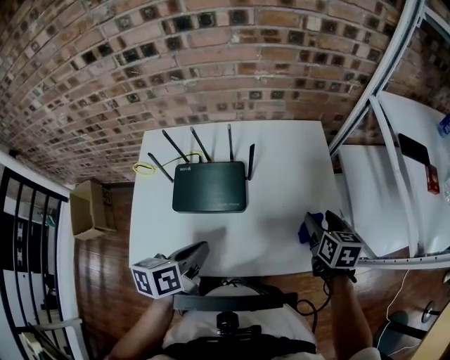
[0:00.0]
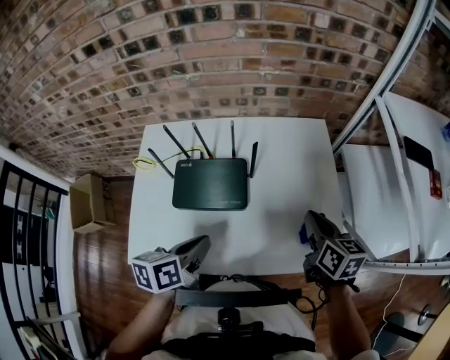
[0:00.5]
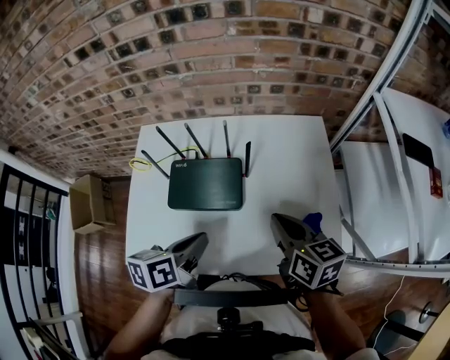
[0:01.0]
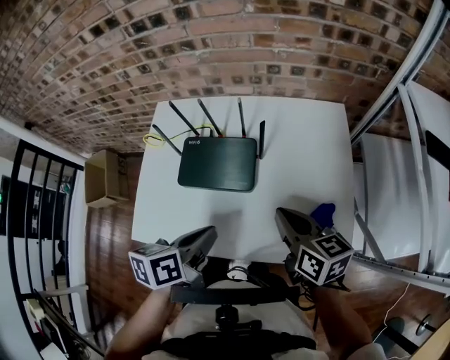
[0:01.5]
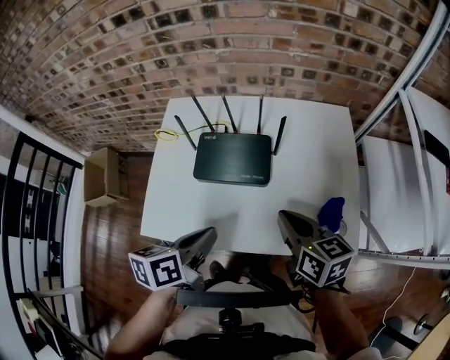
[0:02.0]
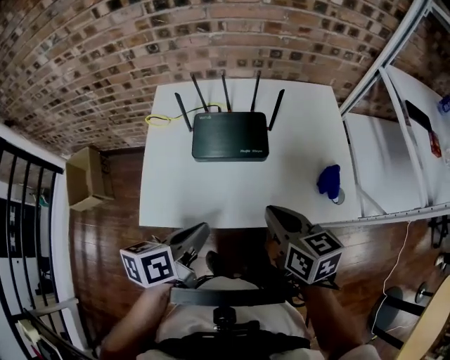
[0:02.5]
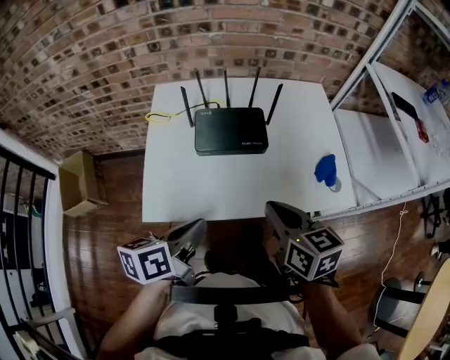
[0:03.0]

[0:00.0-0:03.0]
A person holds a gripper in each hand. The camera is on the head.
0:00.0 to 0:01.5: The right gripper moves to the left, about 15 cm, turns by some 30 degrees, and closes its fingers.
0:01.5 to 0:03.0: The left gripper heads to the left and backward, covering approximately 25 cm. Meanwhile the right gripper is displaced backward and to the left by approximately 25 cm.

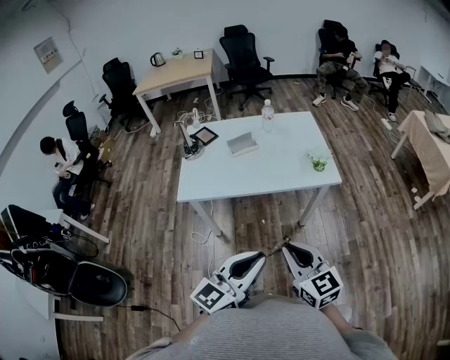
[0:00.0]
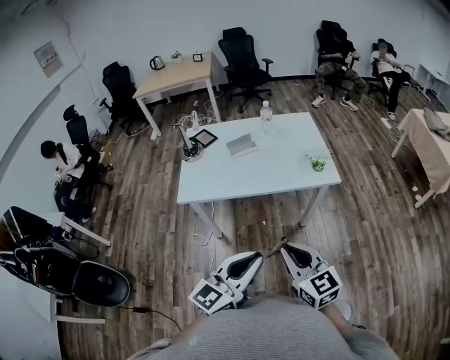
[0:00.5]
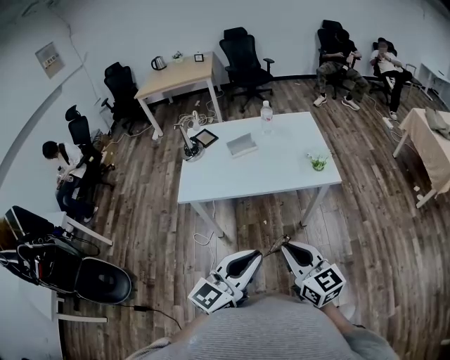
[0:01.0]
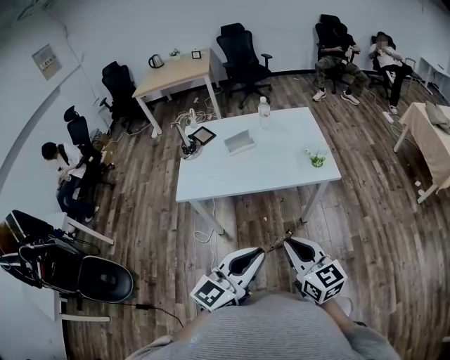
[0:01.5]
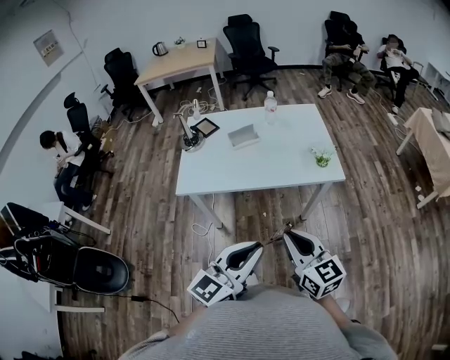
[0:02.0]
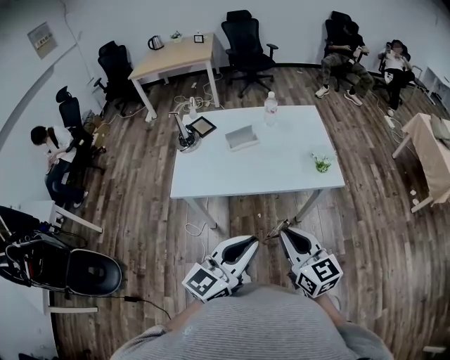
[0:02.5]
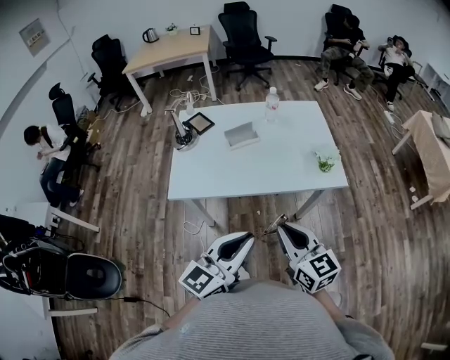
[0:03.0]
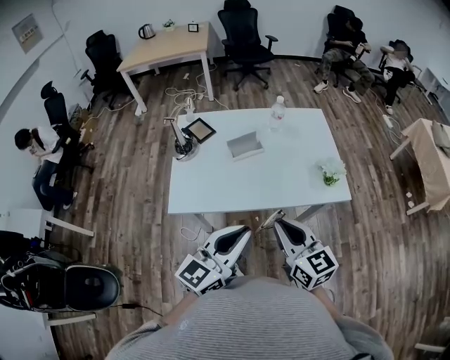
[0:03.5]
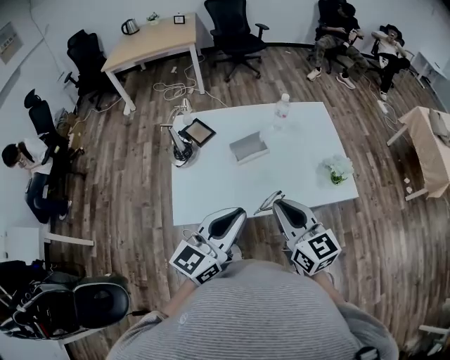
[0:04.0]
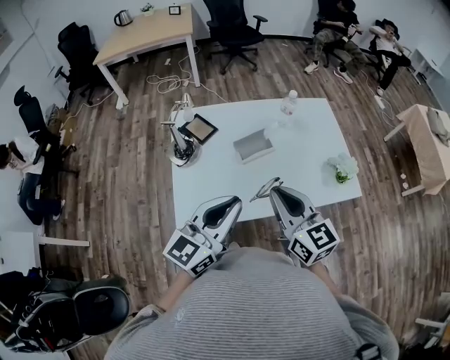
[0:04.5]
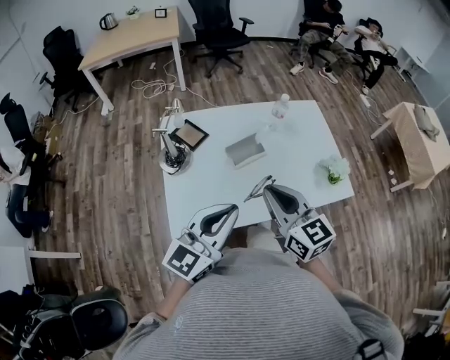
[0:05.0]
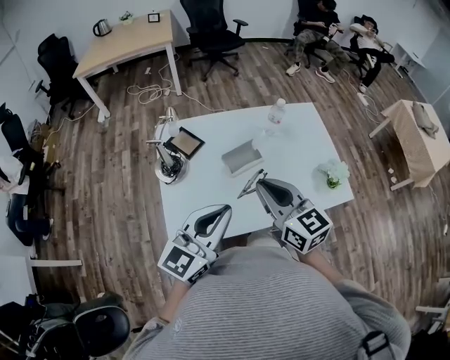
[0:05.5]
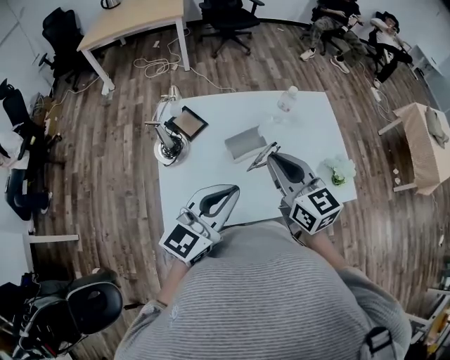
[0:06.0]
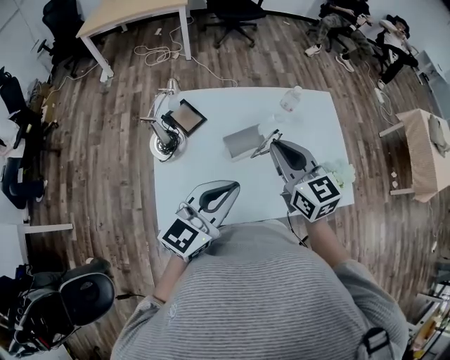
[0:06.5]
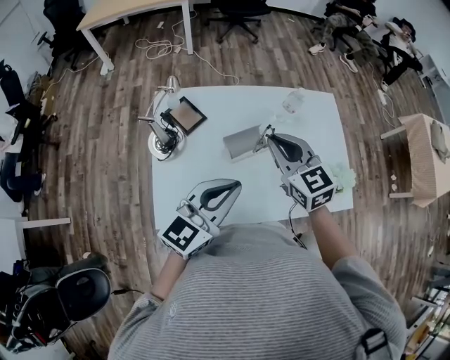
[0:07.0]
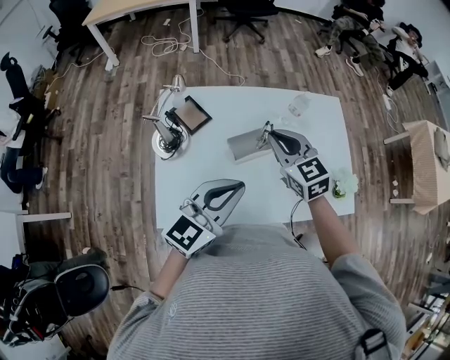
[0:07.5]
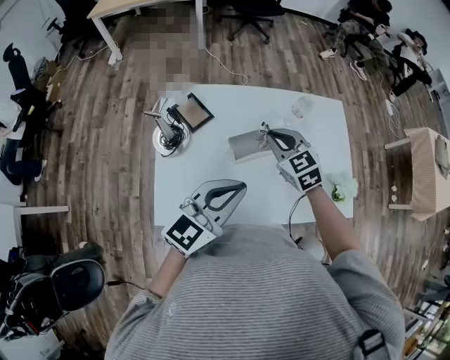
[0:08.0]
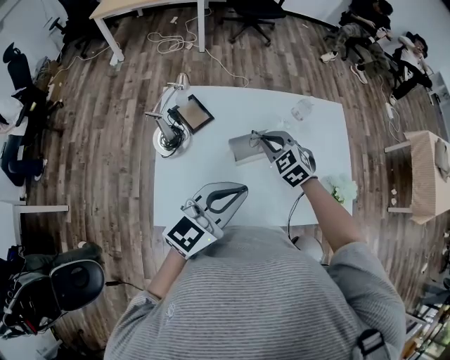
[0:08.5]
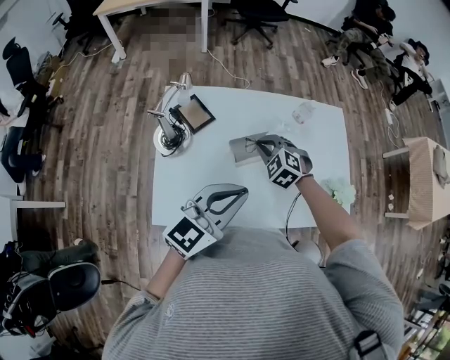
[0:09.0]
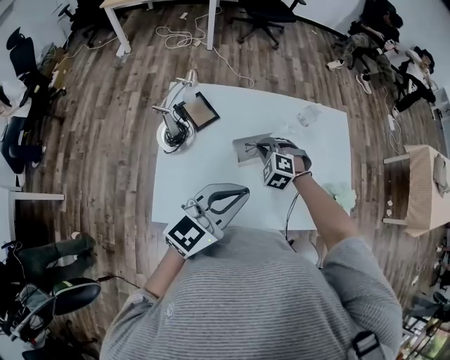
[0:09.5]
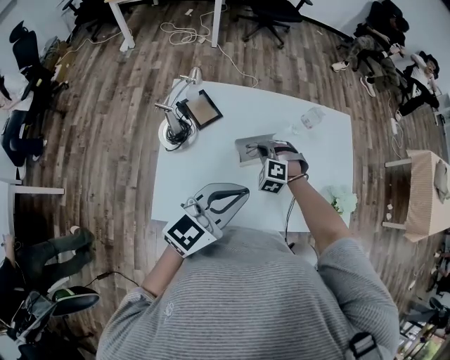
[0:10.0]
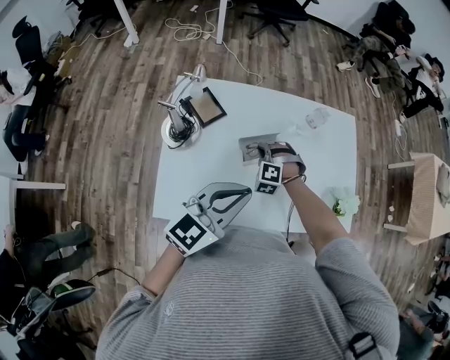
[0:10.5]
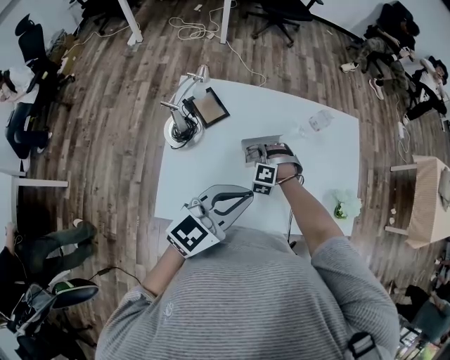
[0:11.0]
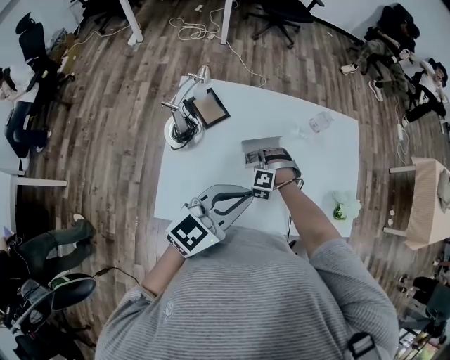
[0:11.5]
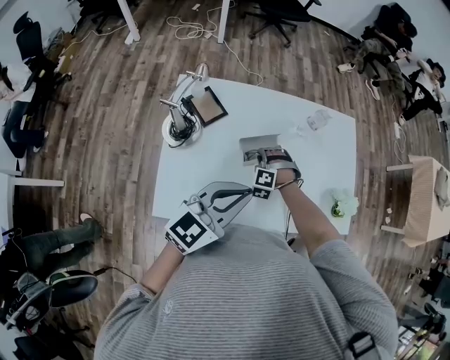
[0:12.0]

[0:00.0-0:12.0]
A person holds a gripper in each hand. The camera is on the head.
0:00.0 to 0:02.0: The grippers move only a little.
0:02.0 to 0:04.0: The grippers both shift forward and to the left by about 30 cm.
0:04.0 to 0:06.0: Both grippers move forward, roughly 15 cm.
0:06.0 to 0:08.0: The left gripper shifts by roughly 5 cm; the right gripper moves forward and downward, about 20 cm, and rotates about 30 degrees.
0:08.0 to 0:10.0: The right gripper is displaced downward by about 15 cm, and twists some 50 degrees counterclockwise, seen from behind.
0:10.0 to 0:12.0: The right gripper moves approximately 5 cm.

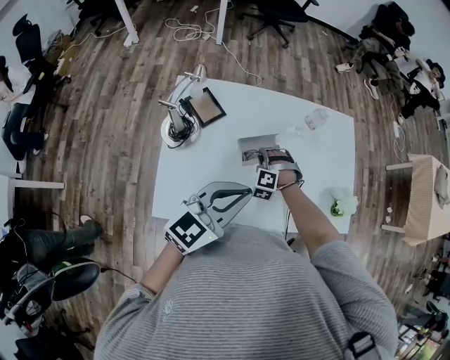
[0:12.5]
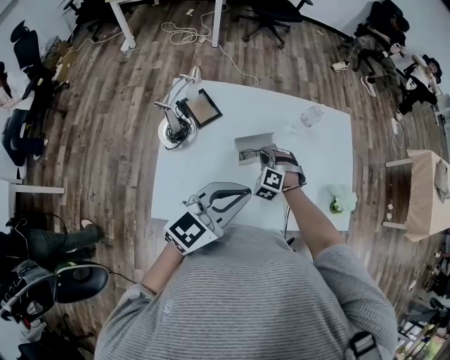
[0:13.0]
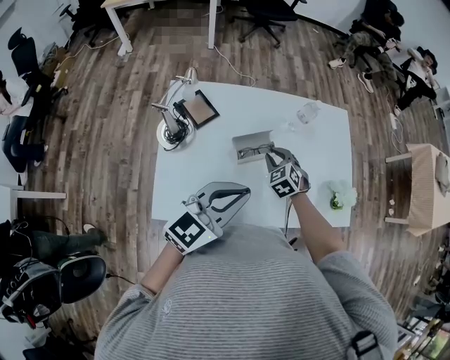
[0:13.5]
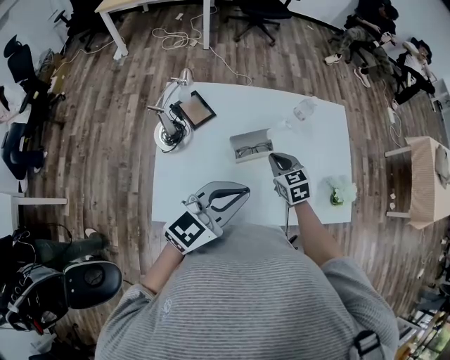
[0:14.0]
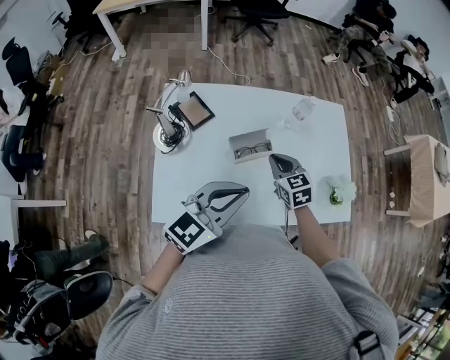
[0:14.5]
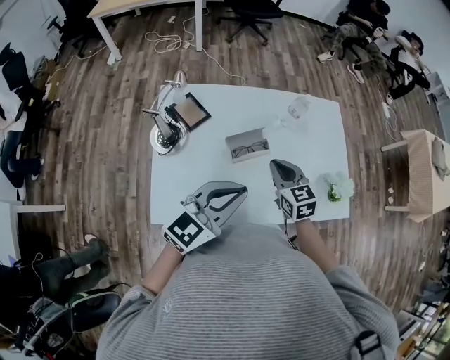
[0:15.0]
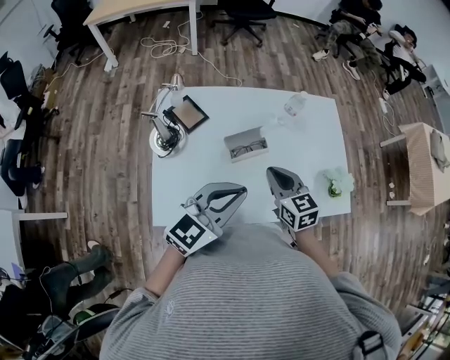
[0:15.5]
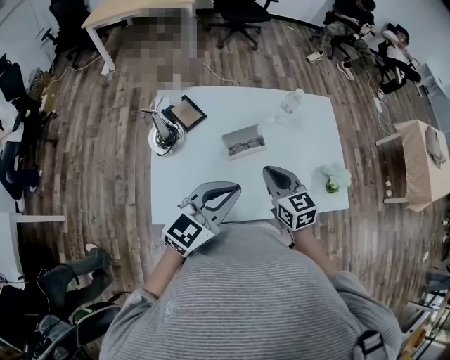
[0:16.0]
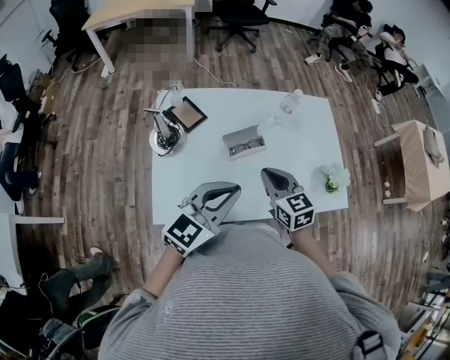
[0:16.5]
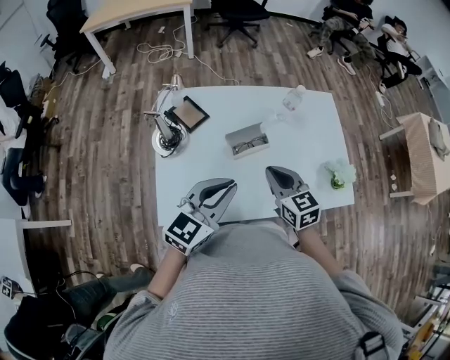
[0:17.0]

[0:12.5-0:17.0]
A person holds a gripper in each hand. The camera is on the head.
0:12.5 to 0:14.5: The right gripper moves upward and to the right, approximately 15 cm, and rotates around the line of its fingers by approximately 70 degrees, clockwise from behind.
0:14.5 to 0:17.0: The right gripper is displaced backward and upward by approximately 10 cm.

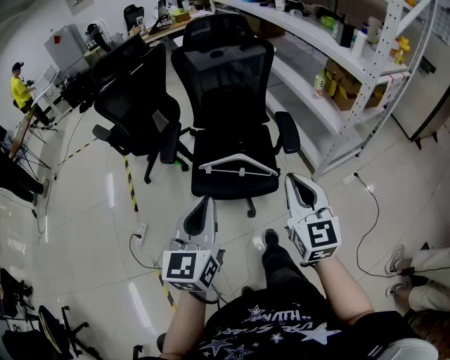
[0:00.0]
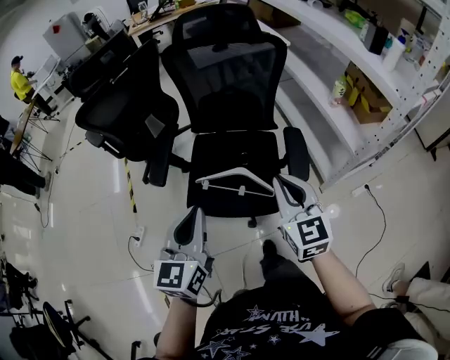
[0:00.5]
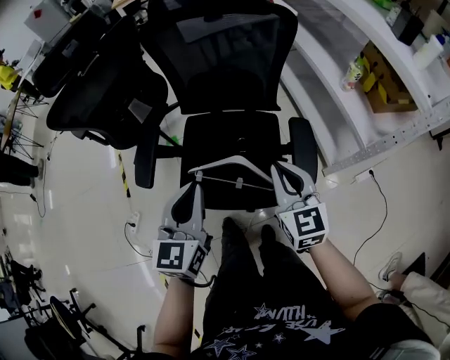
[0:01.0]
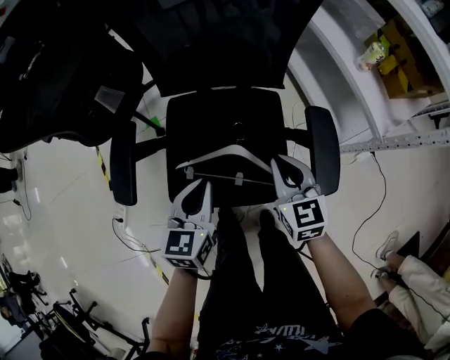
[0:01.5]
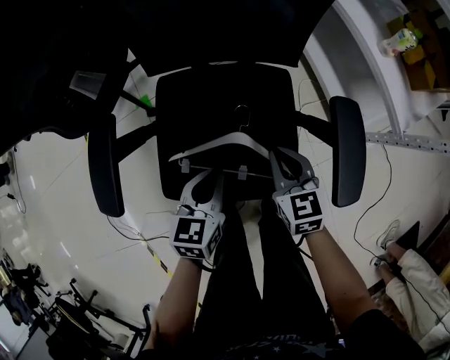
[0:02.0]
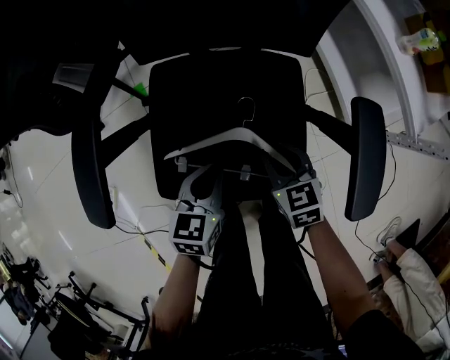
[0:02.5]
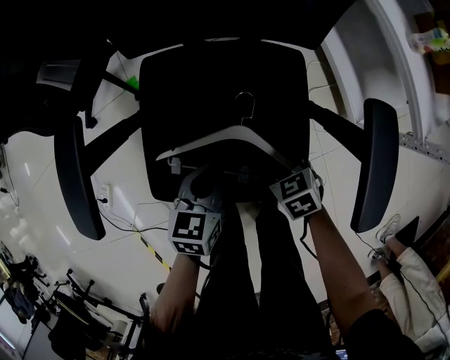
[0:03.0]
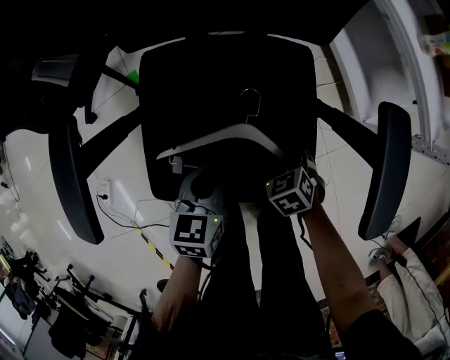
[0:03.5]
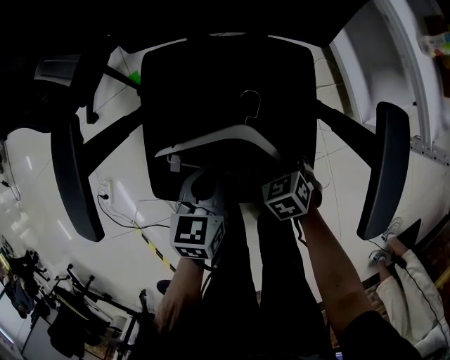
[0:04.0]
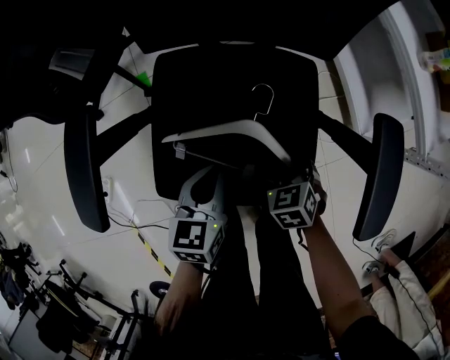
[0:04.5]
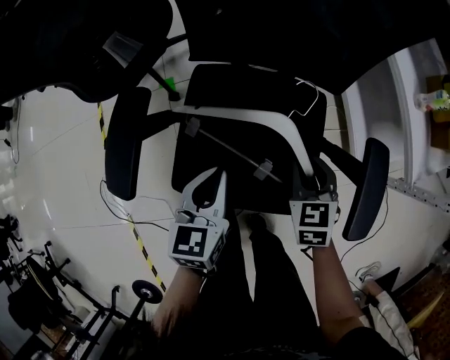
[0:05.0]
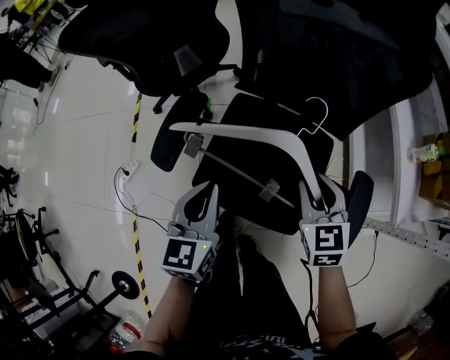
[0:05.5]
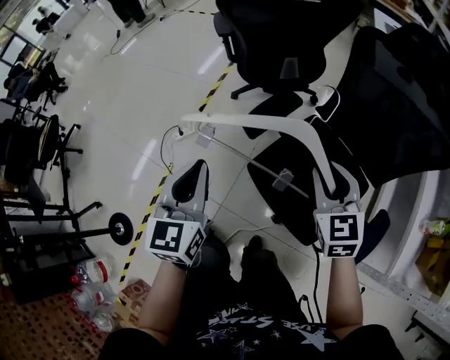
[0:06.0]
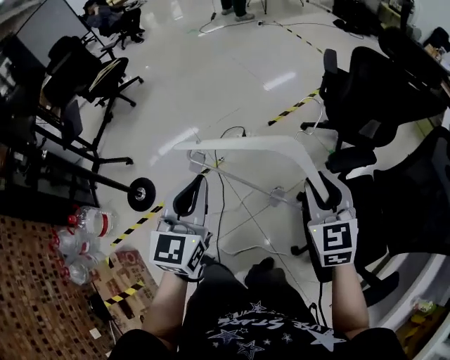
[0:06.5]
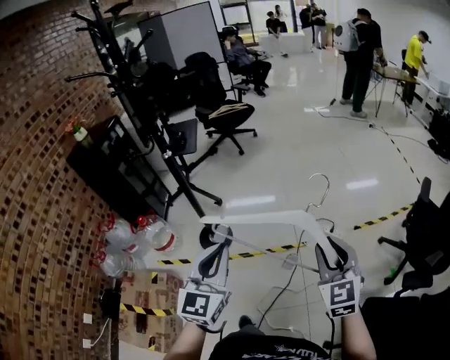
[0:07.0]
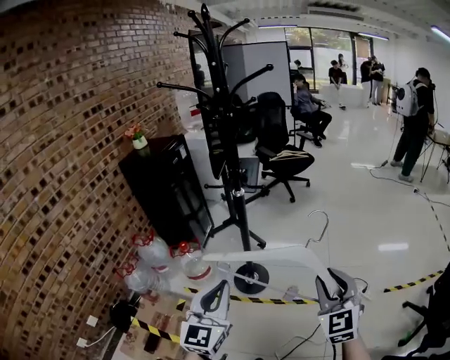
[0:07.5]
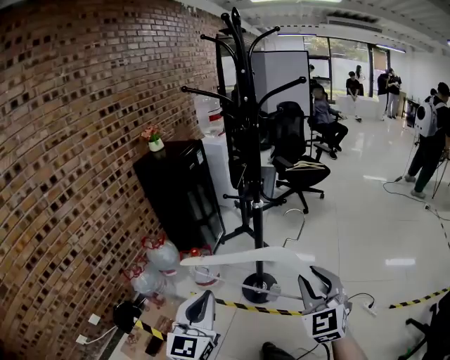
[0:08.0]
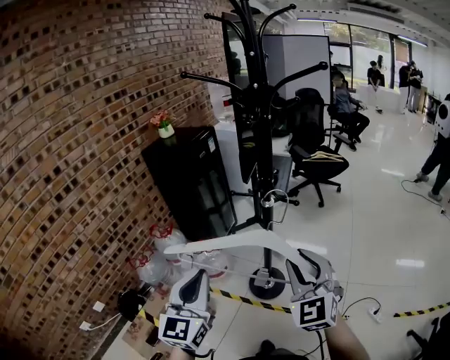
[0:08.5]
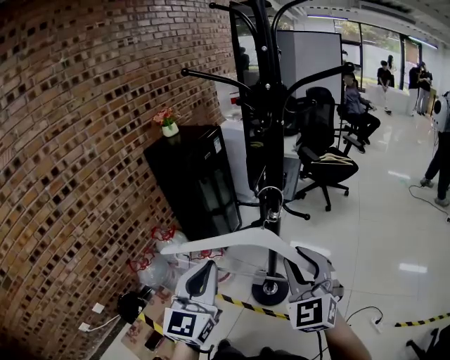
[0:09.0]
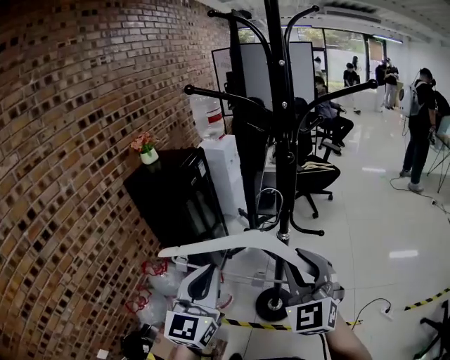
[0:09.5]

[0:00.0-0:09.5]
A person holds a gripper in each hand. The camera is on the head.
0:00.0 to 0:02.0: The grippers both shift downward and forward by approximately 50 cm. The right gripper angles its fingers downward, by approximately 30 degrees; the left gripper rotates about 30 degrees.
0:02.0 to 0:04.0: The left gripper moves downward, about 10 cm. The right gripper travels downward by about 20 cm, points its fingers approximately 30 degrees further downward, and opens its fingers.
0:04.0 to 0:05.5: The grippers both shift upward by approximately 25 cm. The right gripper tilts its fingers some 30 degrees upward. Meanwhile the left gripper swivels about 30 degrees.
0:05.5 to 0:07.5: Both grippers are carried some 90 cm. The left gripper turns by roughly 100 degrees; the right gripper swivels about 110 degrees.
0:07.5 to 0:09.5: Both grippers move forward and to the left, about 30 cm.
